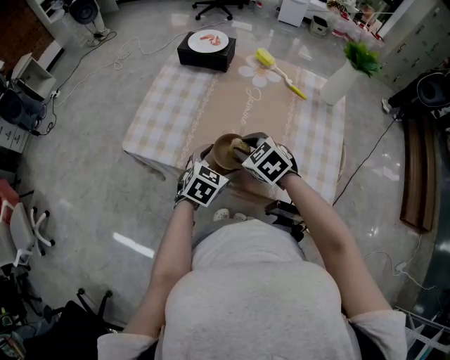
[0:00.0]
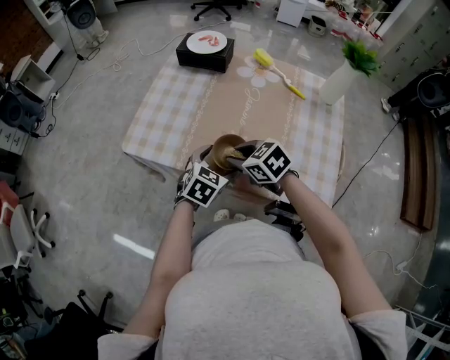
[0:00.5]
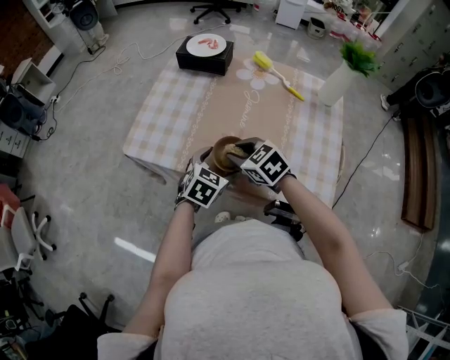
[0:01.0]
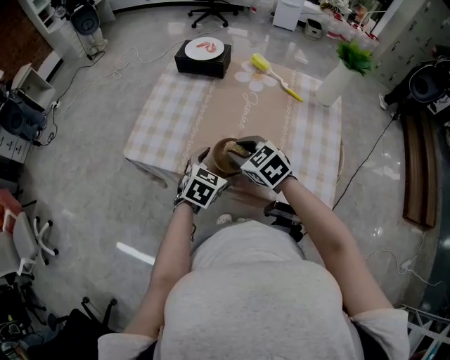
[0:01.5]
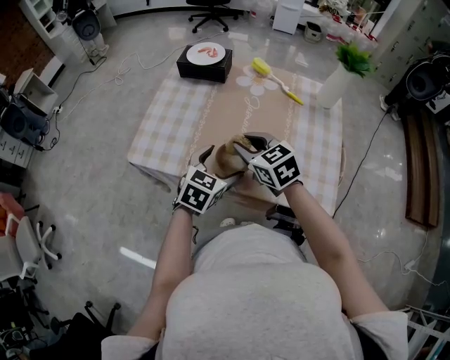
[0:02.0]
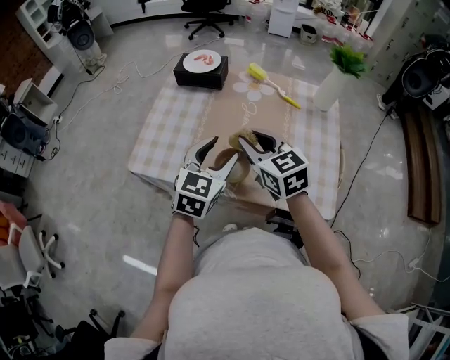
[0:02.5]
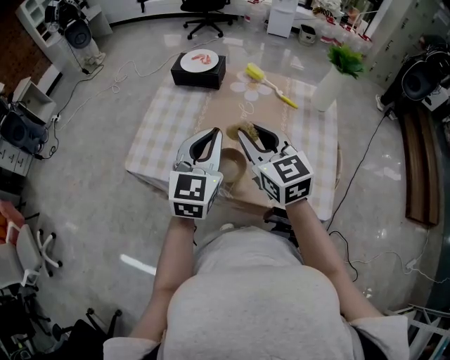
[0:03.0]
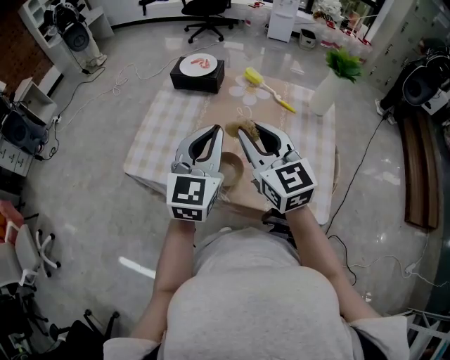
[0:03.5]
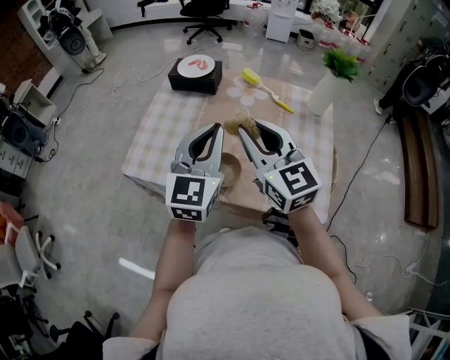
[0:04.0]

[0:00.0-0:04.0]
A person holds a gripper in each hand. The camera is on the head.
0:00.0 to 0:02.0: Both grippers travel together upward, approximately 5 cm. The right gripper turns by approximately 20 degrees.
0:02.0 to 0:04.0: The grippers both shift upward by about 15 cm. The right gripper swivels approximately 30 degrees. Meanwhile the left gripper angles its fingers upward, by roughly 30 degrees, and closes.

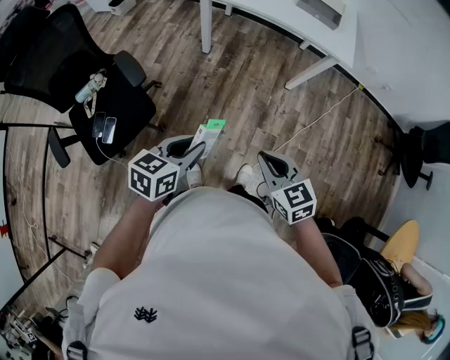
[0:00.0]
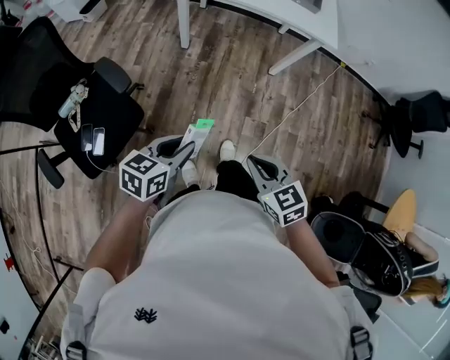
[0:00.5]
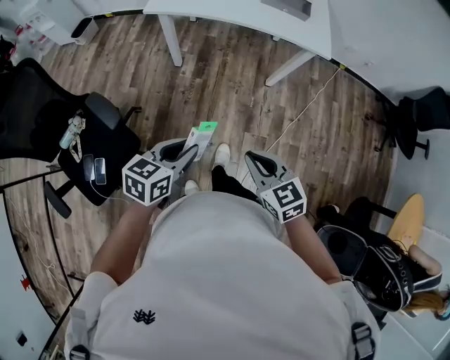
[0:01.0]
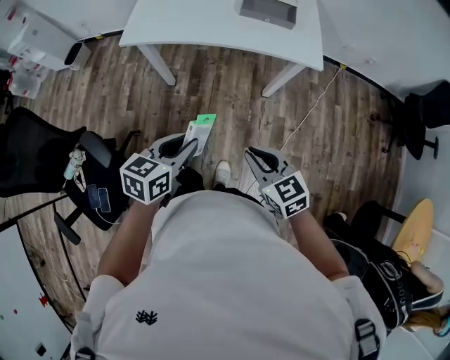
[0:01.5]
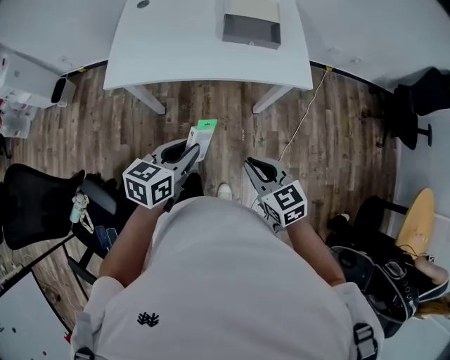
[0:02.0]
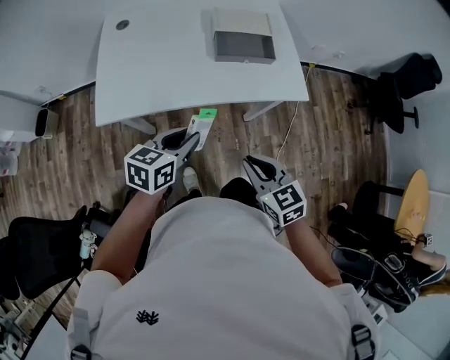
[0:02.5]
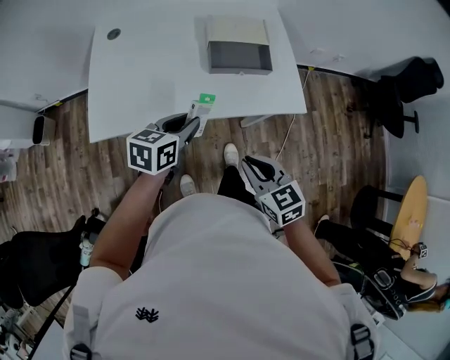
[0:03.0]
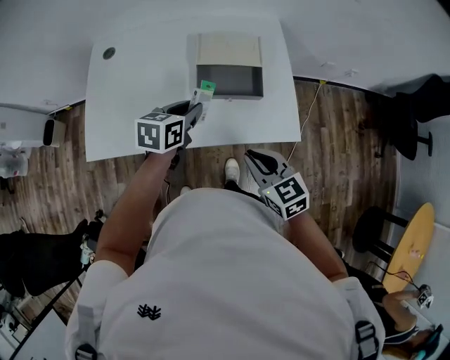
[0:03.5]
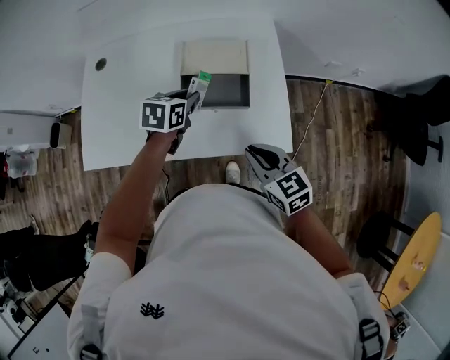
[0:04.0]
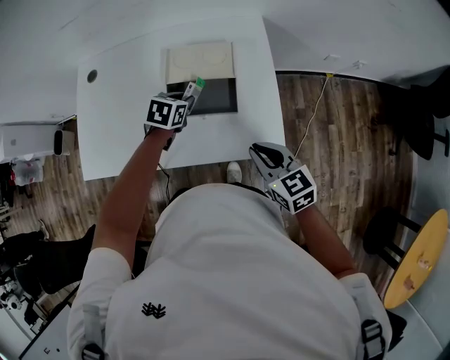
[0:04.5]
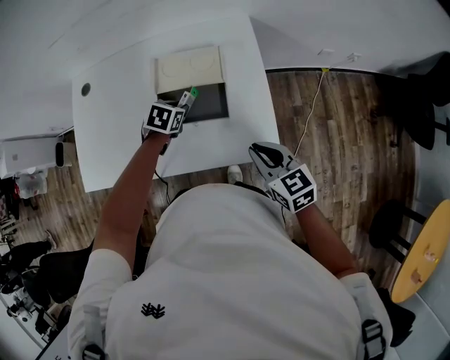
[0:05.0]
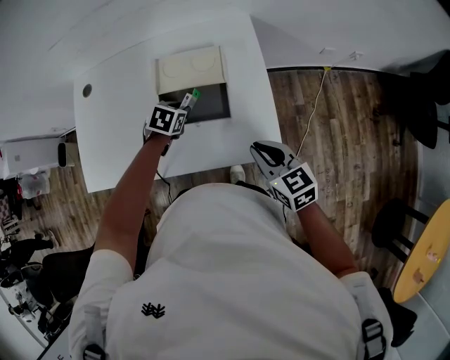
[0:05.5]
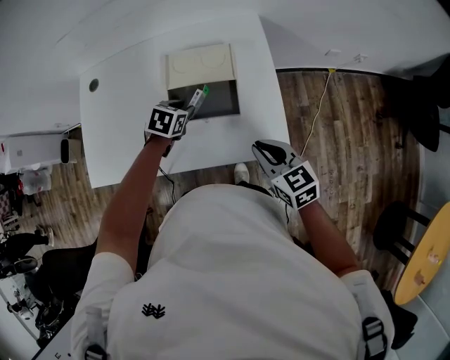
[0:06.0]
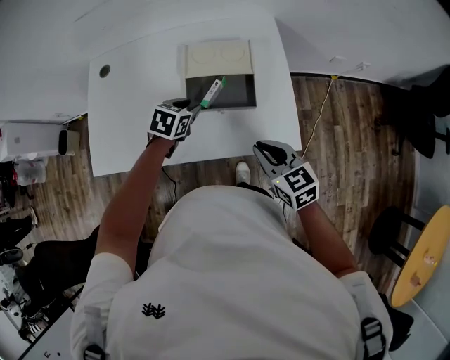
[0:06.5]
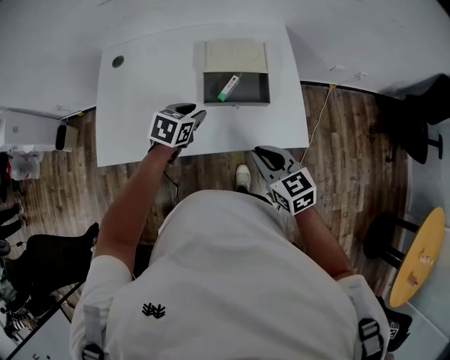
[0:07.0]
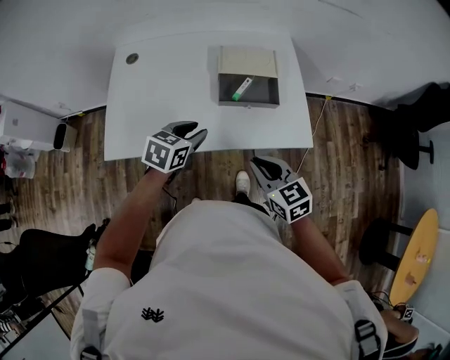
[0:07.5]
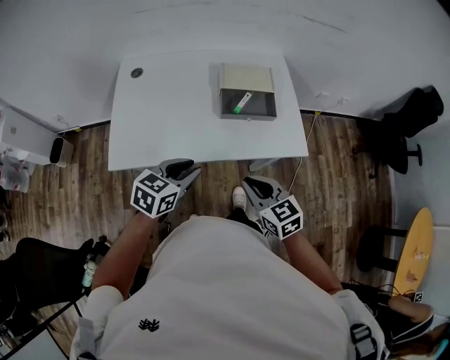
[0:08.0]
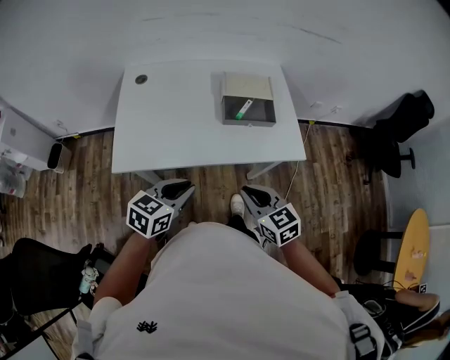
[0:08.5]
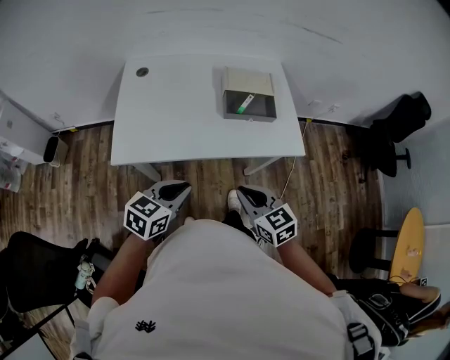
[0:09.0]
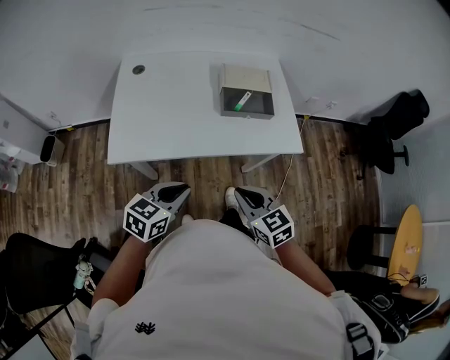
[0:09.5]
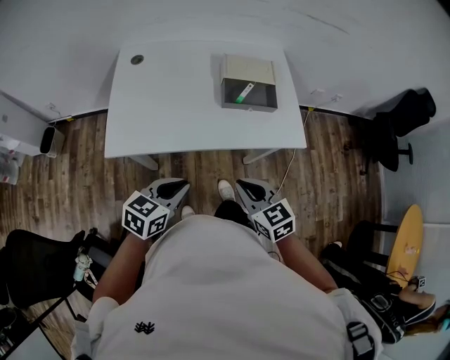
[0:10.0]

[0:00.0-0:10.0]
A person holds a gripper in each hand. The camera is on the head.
0:00.0 to 0:02.0: Both grippers travel together forward, about 30 cm.
0:02.0 to 0:04.0: Both grippers travel together forward, approximately 40 cm.
0:04.0 to 0:06.0: The right gripper shifts about 5 cm to the right, while the left gripper shifts roughly 5 cm downward, and turns by roughly 20 degrees.
0:06.0 to 0:08.0: The right gripper goes roughly 25 cm to the left and backward; the left gripper moves backward, upward and to the left, approximately 30 cm, and rotates about 30 degrees.
0:08.0 to 0:10.0: The left gripper is displaced backward by roughly 10 cm.

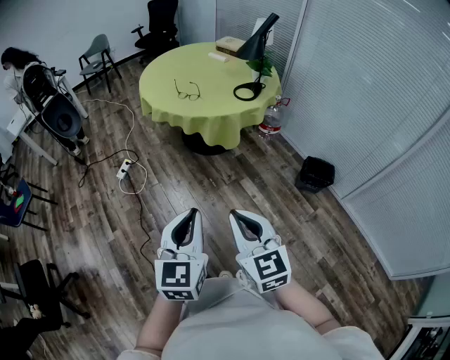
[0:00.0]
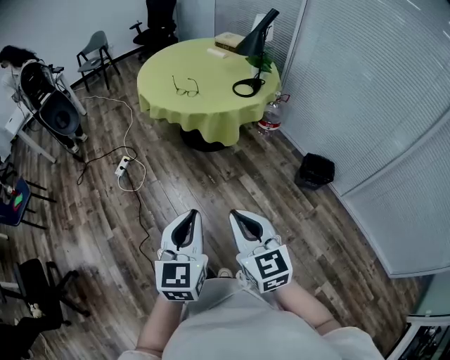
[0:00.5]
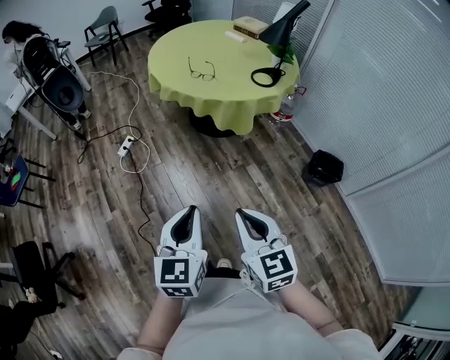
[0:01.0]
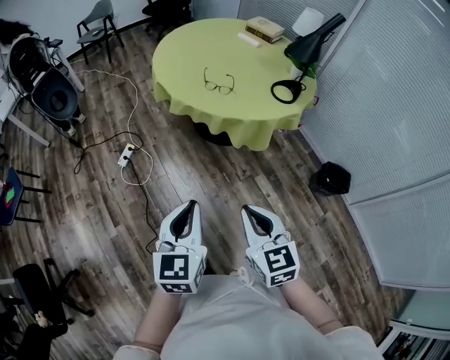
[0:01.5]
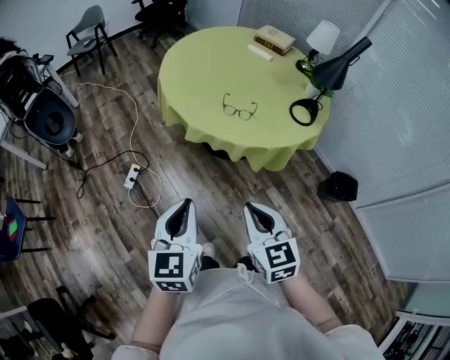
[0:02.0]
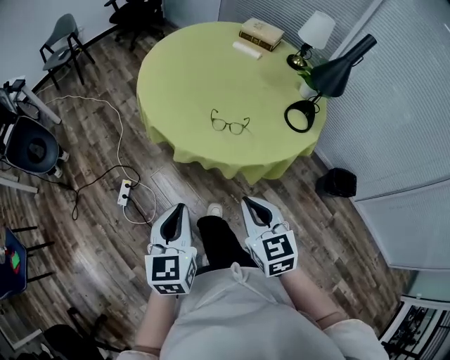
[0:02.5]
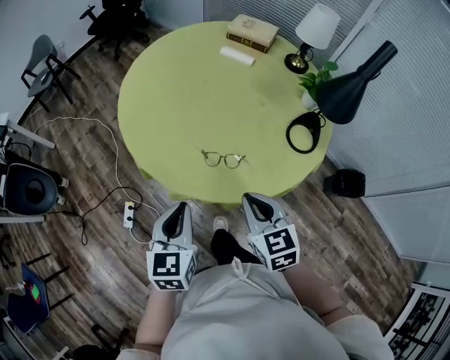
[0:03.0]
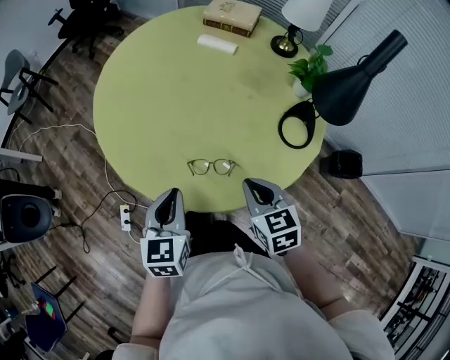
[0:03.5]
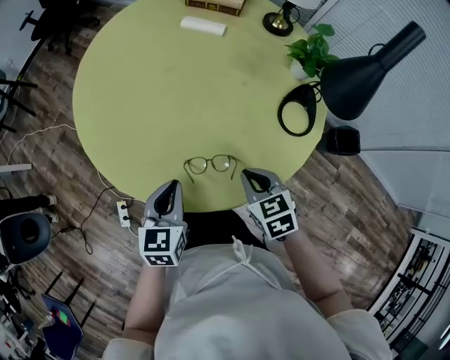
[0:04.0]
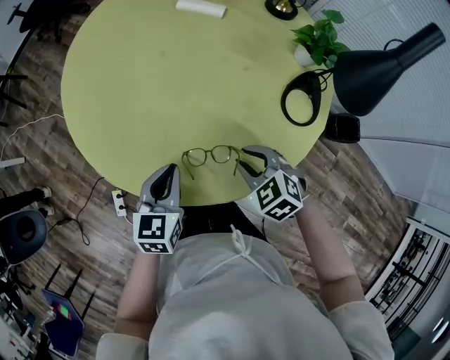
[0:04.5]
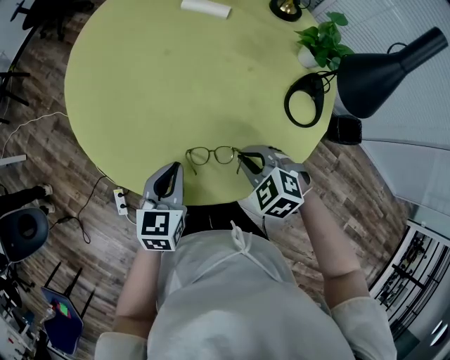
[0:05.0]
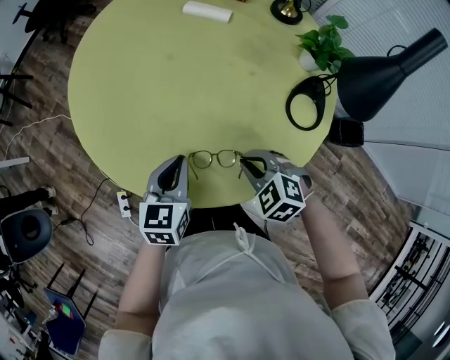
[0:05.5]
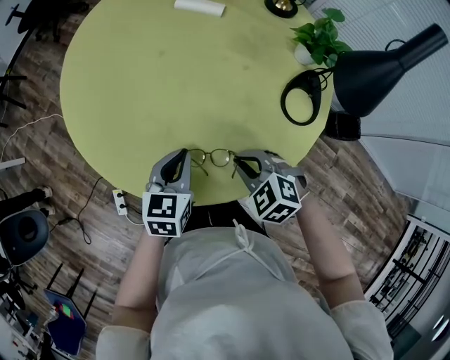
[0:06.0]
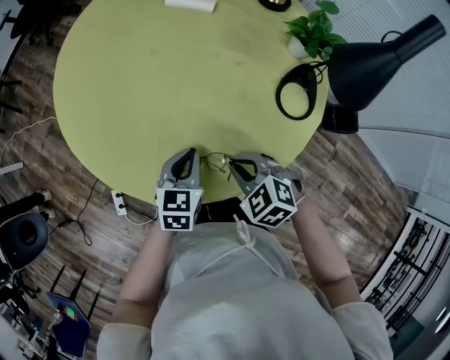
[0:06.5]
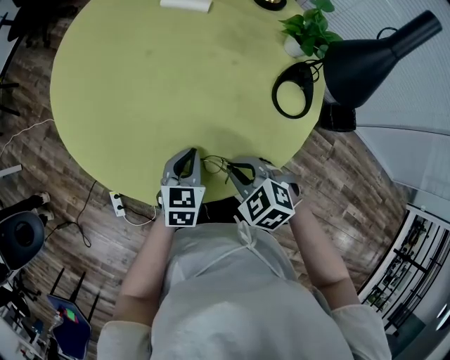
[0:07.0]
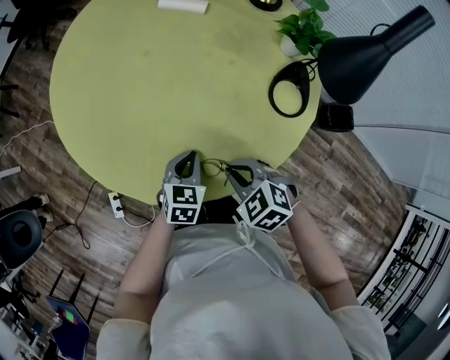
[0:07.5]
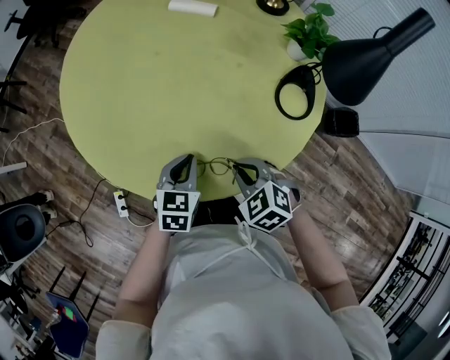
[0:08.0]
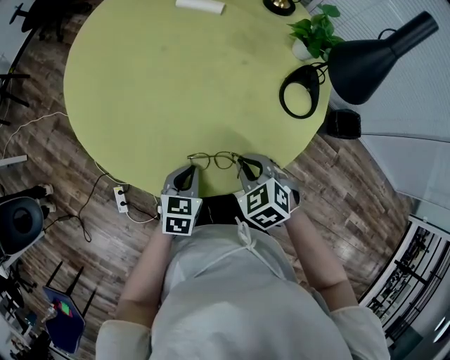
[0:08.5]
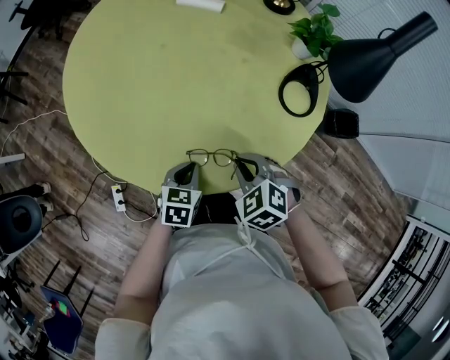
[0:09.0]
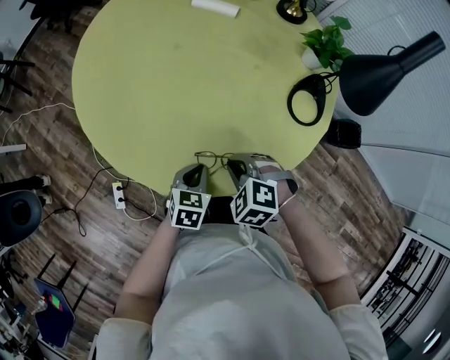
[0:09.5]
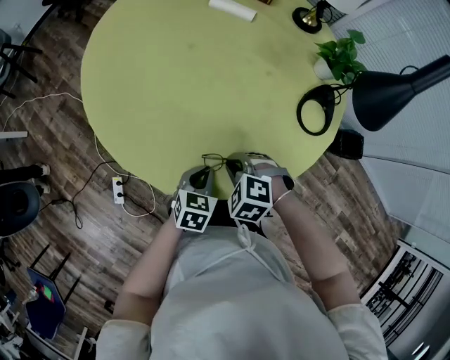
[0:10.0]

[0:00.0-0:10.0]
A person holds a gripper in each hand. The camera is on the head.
0:00.0 to 0:02.0: The two grippers travel together, forward and to the left, approximately 50 cm.
0:02.0 to 0:04.0: The pair of grippers is taken forward, approximately 50 cm. The left gripper swivels approximately 30 degrees. The right gripper swivels approximately 30 degrees.
0:04.0 to 0:06.0: The right gripper rotates approximately 40 degrees, and opens, then closes once more; the left gripper moves forward, some 5 cm.
0:08.0 to 0:10.0: The left gripper is displaced downward by some 5 cm. The right gripper shifts roughly 5 cm to the left, and rotates roughly 30 degrees.

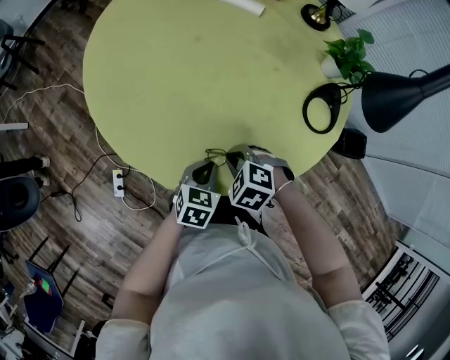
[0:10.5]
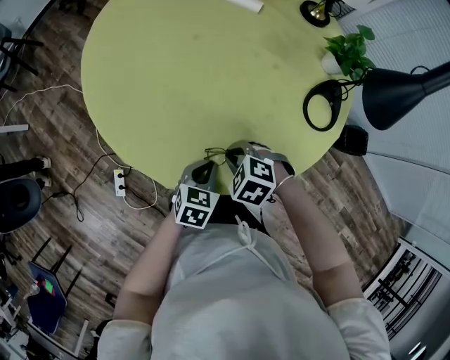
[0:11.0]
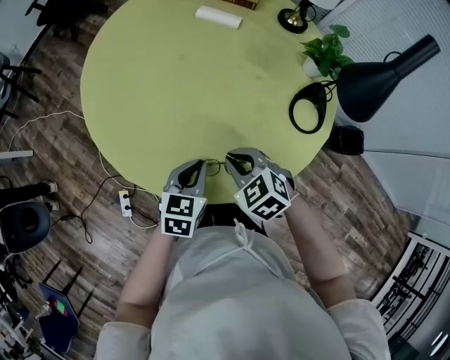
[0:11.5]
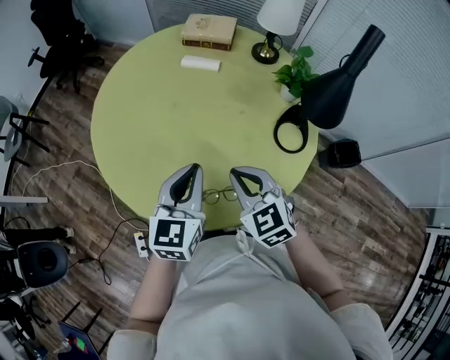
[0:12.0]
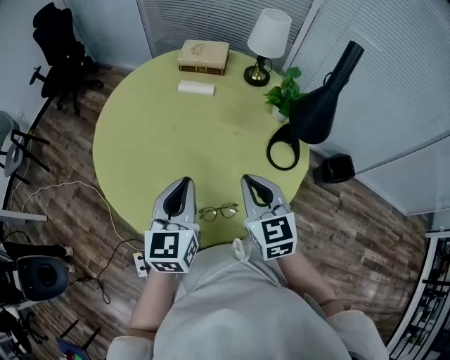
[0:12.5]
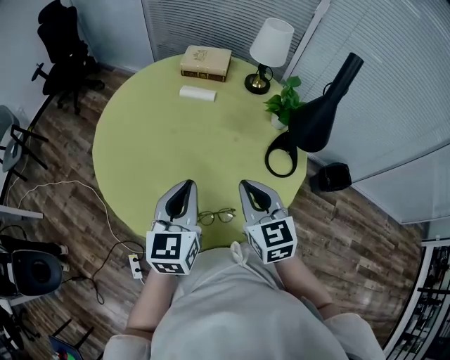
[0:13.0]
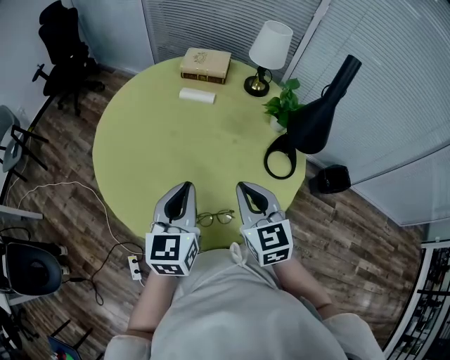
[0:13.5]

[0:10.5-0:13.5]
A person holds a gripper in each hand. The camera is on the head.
0:10.5 to 0:12.0: Both grippers move upward, some 25 cm. The left gripper tips its fingers upward by roughly 30 degrees; the right gripper tilts its fingers roughly 40 degrees upward.
0:12.0 to 0:13.5: The right gripper shifts roughly 5 cm upward, and rotates some 20 degrees.
